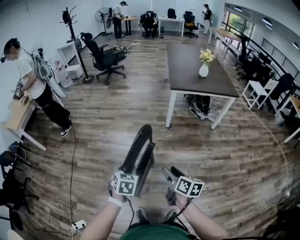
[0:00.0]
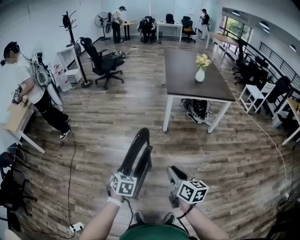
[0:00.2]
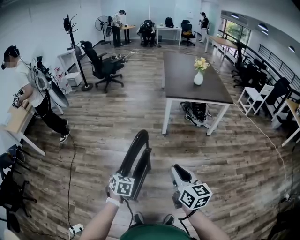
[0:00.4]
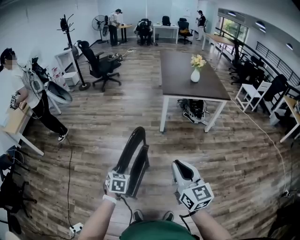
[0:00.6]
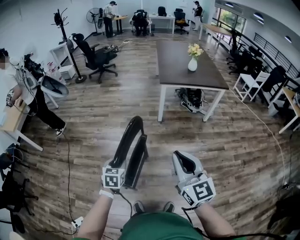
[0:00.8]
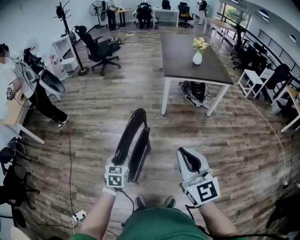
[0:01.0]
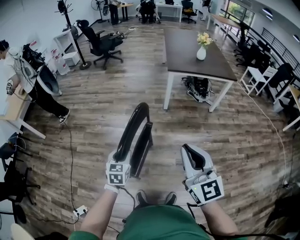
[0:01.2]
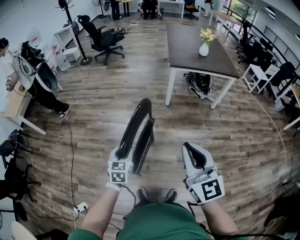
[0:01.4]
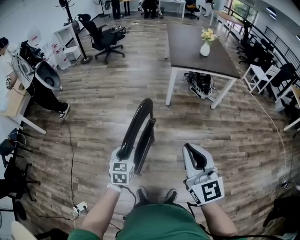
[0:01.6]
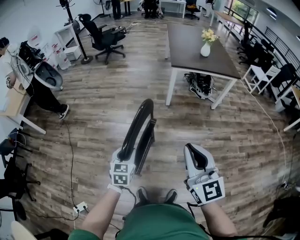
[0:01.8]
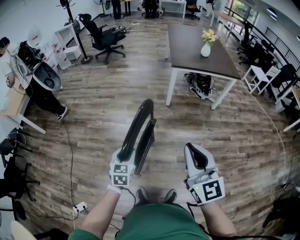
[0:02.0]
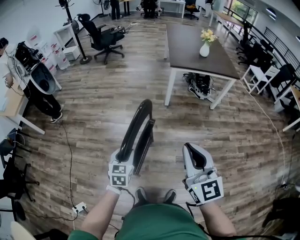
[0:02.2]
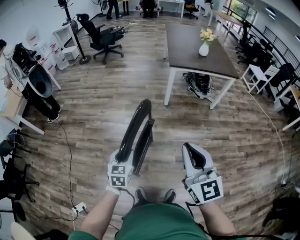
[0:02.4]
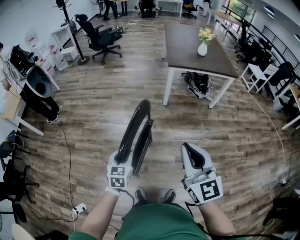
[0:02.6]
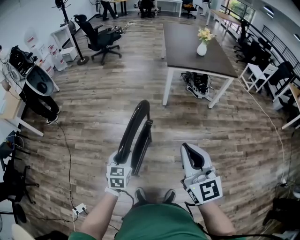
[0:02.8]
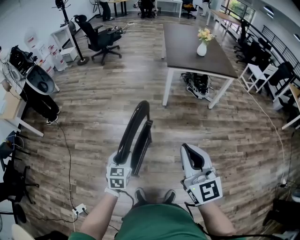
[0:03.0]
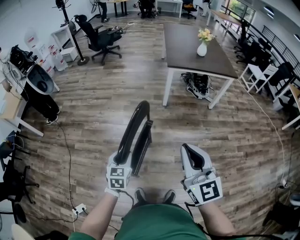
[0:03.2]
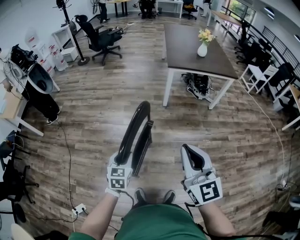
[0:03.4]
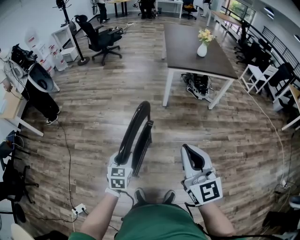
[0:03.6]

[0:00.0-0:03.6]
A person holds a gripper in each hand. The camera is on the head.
0.0 to 1.8 s: The right gripper heads upward, covering some 20 cm, rolls counterclockwise, seen from behind, by approximately 50 degrees, and closes its fingers.
1.8 to 3.6 s: The two grippers keep their place.

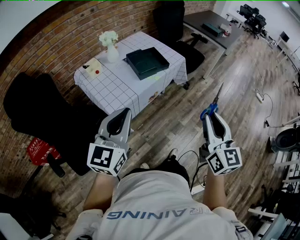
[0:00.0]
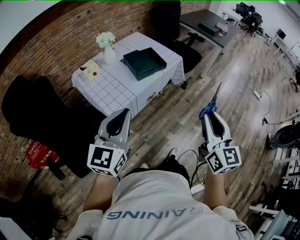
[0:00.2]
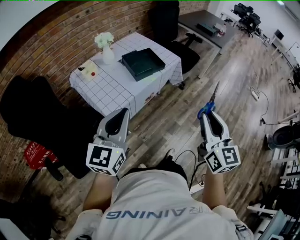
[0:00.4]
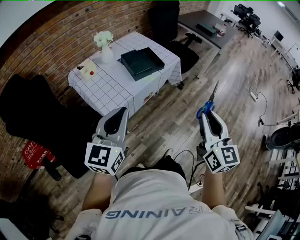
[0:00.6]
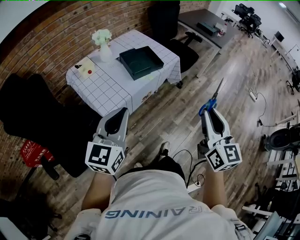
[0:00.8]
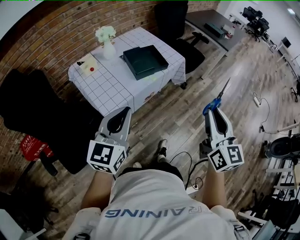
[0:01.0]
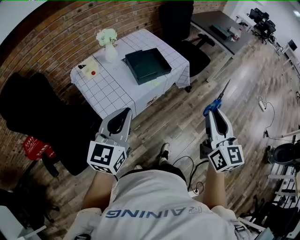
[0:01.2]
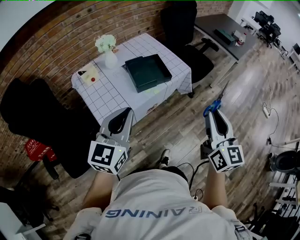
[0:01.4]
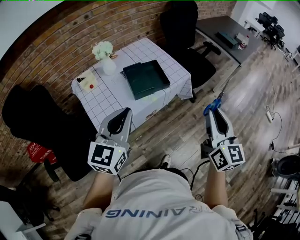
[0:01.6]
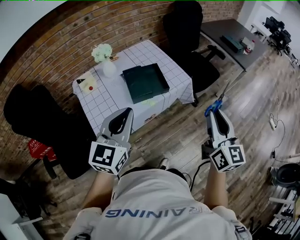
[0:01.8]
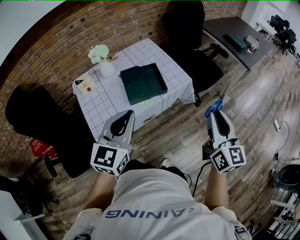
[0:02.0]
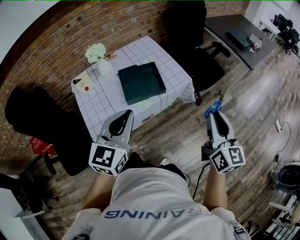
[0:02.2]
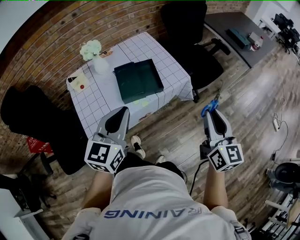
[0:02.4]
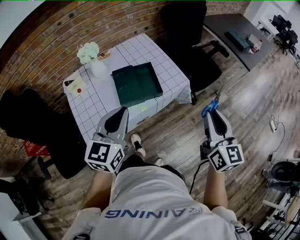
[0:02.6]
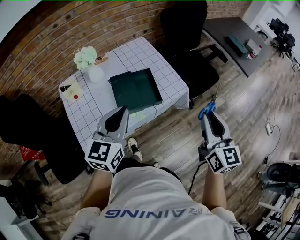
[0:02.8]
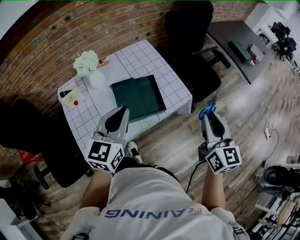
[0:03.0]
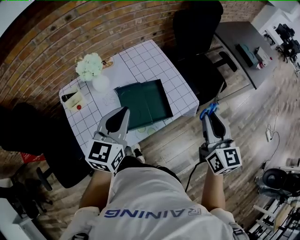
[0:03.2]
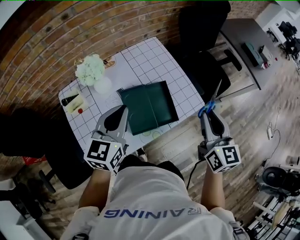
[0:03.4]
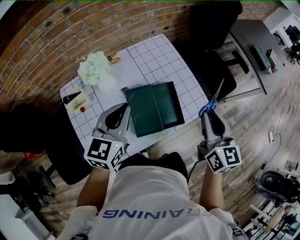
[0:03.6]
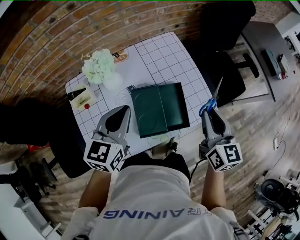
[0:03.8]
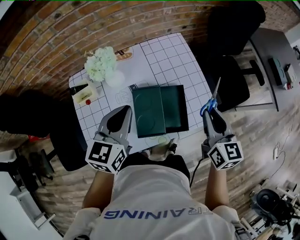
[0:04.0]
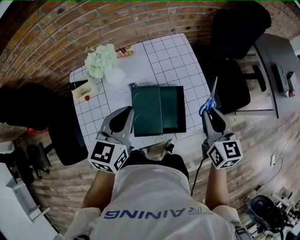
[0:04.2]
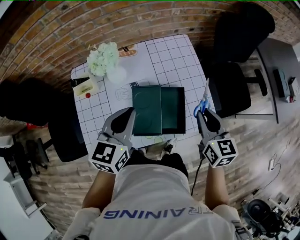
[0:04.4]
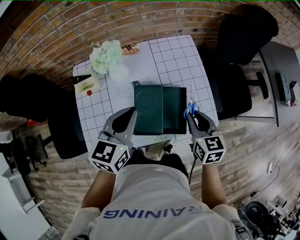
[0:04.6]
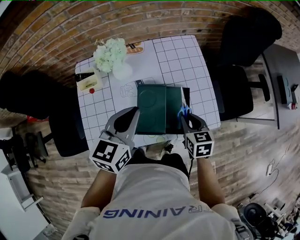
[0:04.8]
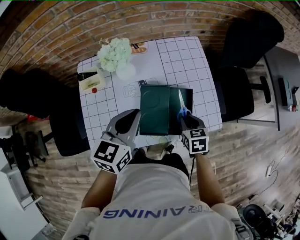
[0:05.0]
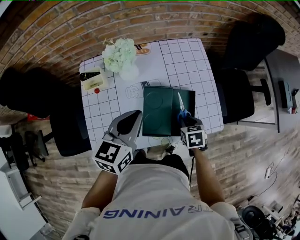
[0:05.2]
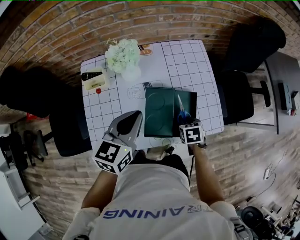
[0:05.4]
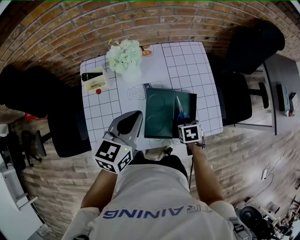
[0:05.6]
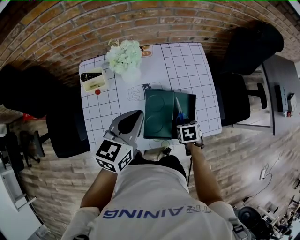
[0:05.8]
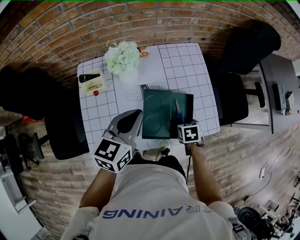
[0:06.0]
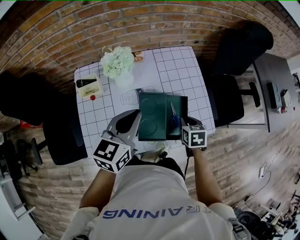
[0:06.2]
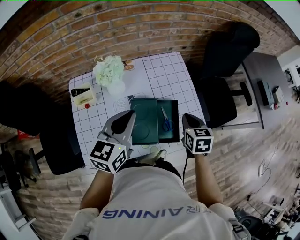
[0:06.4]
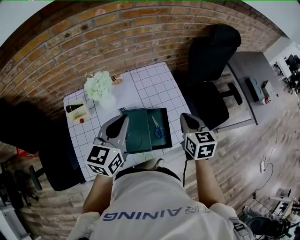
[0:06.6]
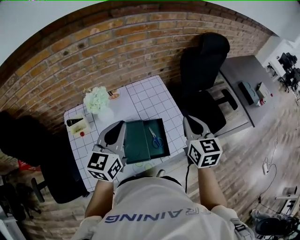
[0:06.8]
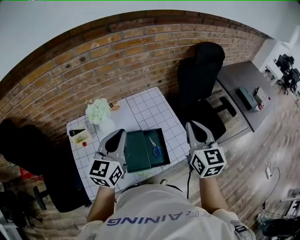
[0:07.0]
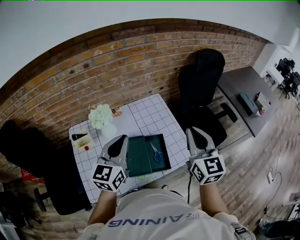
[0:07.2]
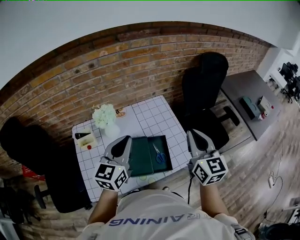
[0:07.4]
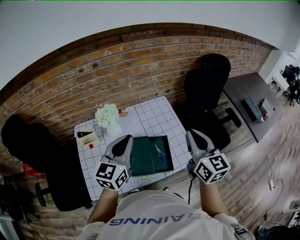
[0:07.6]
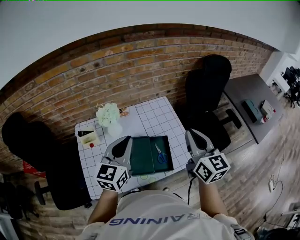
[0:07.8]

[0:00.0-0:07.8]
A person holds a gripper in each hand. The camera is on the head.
0.0 to 1.6 s: The two grippers go approximately 20 cm forward.
1.6 to 3.2 s: The two grippers go some 30 cm forward.
3.2 to 4.6 s: The left gripper goes about 10 cm forward and downward; the right gripper heads downward, forward and to the left, covering roughly 25 cm, and rotates roughly 30 degrees.
4.6 to 6.2 s: The right gripper moves downward, approximately 10 cm, and turns by about 20 degrees.
6.2 to 7.8 s: The right gripper is displaced upward by approximately 35 cm, and tips its fingers upward by some 50 degrees; the left gripper goes approximately 10 cm upward.

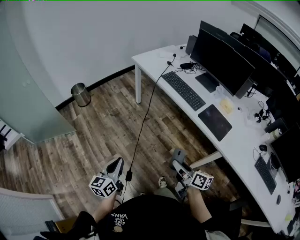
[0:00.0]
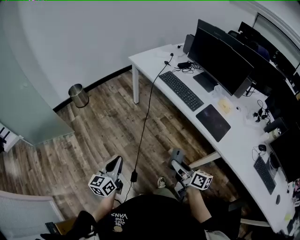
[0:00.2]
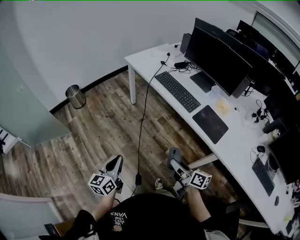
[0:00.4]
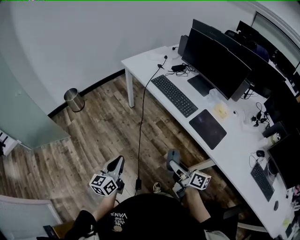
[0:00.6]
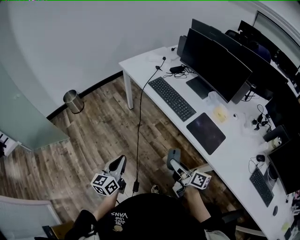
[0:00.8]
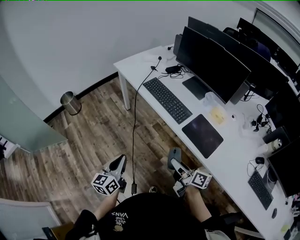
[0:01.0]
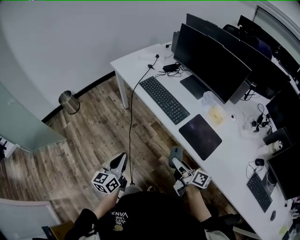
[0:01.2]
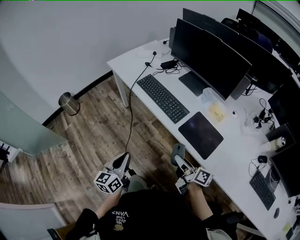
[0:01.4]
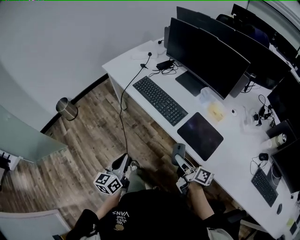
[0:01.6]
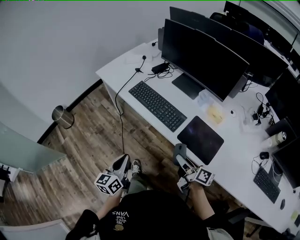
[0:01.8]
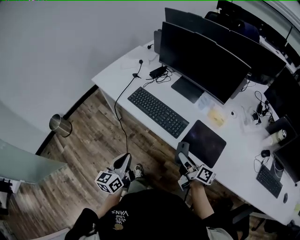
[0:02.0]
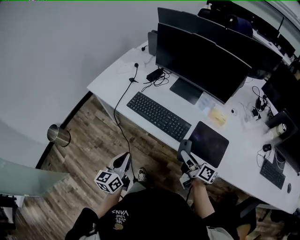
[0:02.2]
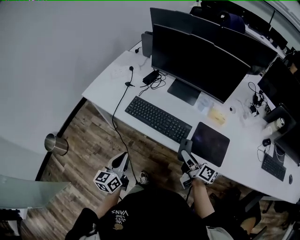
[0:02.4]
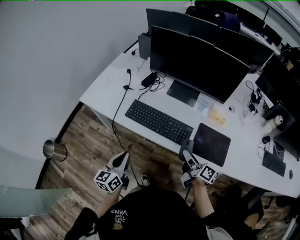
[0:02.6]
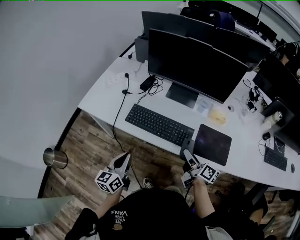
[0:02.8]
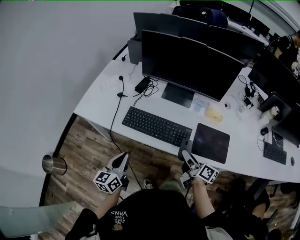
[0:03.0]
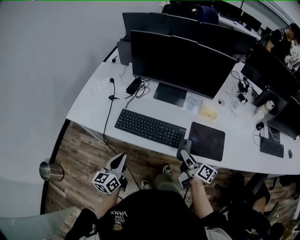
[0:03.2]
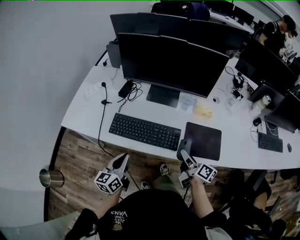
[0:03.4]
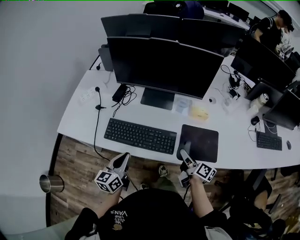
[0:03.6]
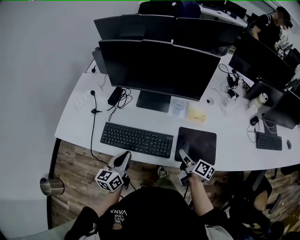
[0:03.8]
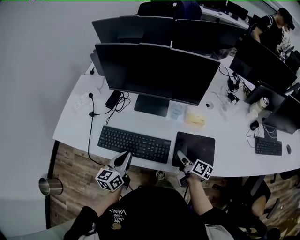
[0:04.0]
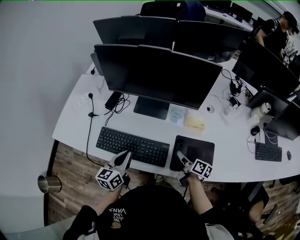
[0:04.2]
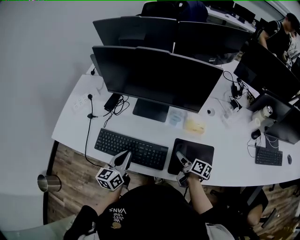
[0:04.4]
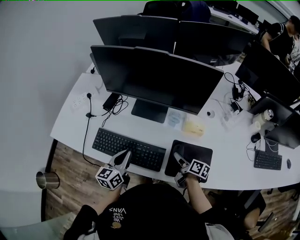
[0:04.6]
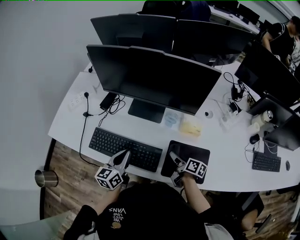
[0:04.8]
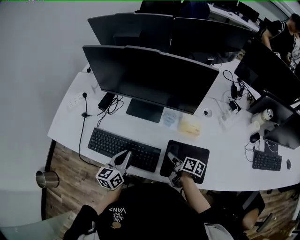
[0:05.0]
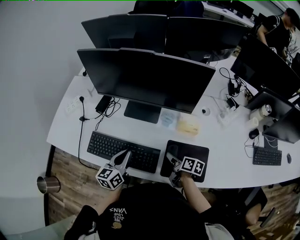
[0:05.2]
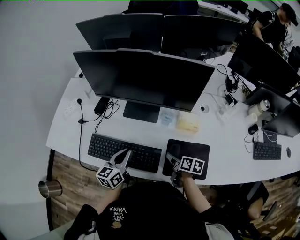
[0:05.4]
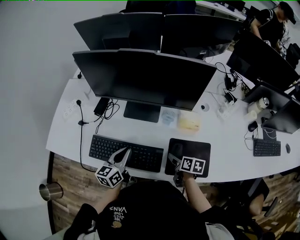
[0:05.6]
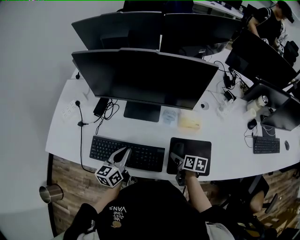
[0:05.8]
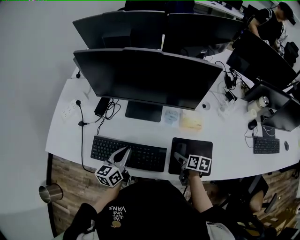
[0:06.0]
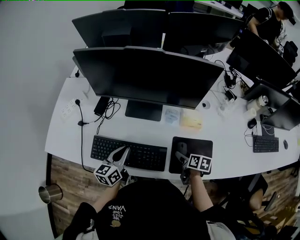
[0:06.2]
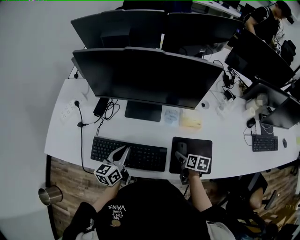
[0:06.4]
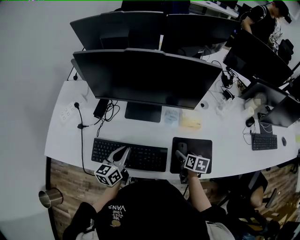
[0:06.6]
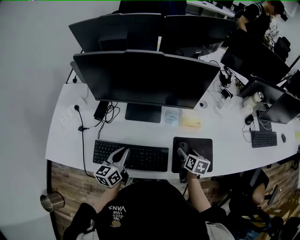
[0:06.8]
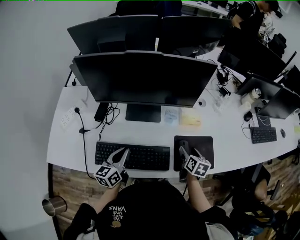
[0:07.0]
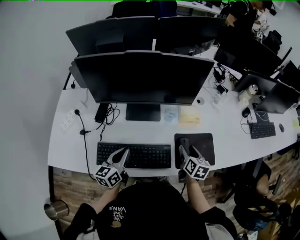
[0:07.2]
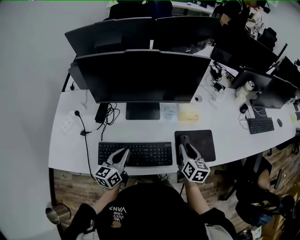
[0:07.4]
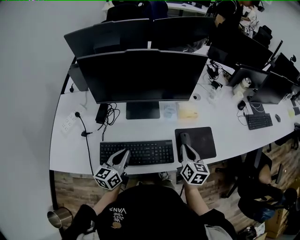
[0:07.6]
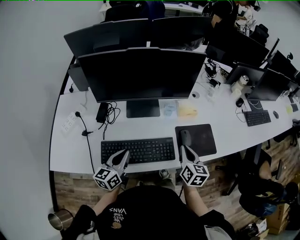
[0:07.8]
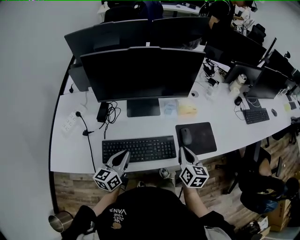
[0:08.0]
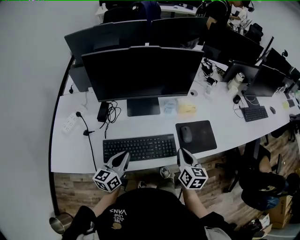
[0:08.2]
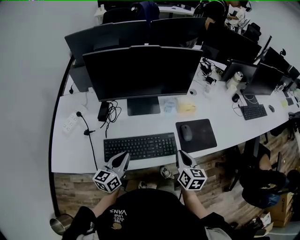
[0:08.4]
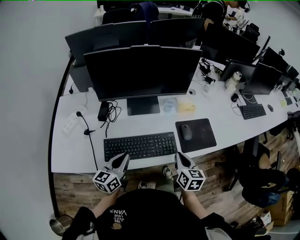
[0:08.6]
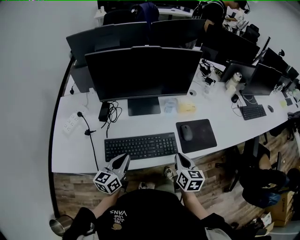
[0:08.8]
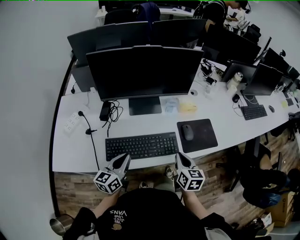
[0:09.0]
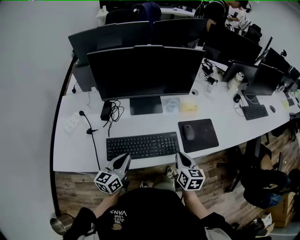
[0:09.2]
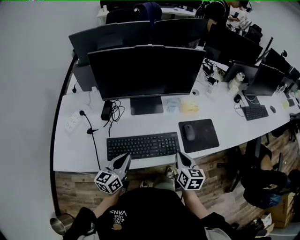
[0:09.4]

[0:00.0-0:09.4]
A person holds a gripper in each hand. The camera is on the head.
0.0 to 1.6 s: The two grippers go roughly 30 cm to the right and forward.
1.6 to 3.2 s: The right gripper ends up roughly 15 cm from where it was, and turns by about 40 degrees, while the left gripper ends up about 30 cm from where it was, and changes its angle by about 30 degrees.
3.2 to 4.8 s: The left gripper travels forward and to the right by roughly 25 cm. Meanwhile the right gripper heads forward, downward and to the right, covering about 20 cm, and swivels some 20 degrees.
4.8 to 6.2 s: The left gripper moves roughly 5 cm. The right gripper swivels about 30 degrees, and opens.
6.2 to 7.8 s: The right gripper is displaced upward, backward and to the left by roughly 20 cm, rotates some 40 degrees, and closes its fingers. Meanwhile the left gripper ends up some 10 cm from where it was.
7.8 to 9.4 s: The two grippers go some 5 cm backward.

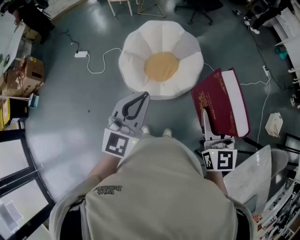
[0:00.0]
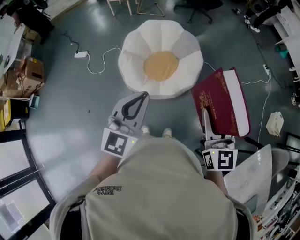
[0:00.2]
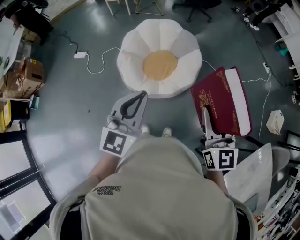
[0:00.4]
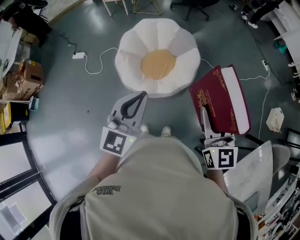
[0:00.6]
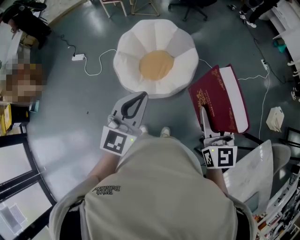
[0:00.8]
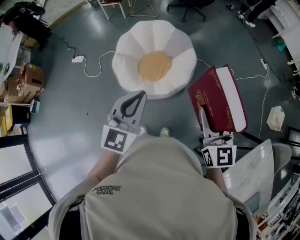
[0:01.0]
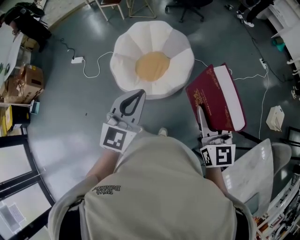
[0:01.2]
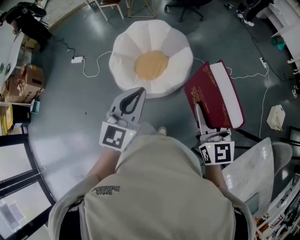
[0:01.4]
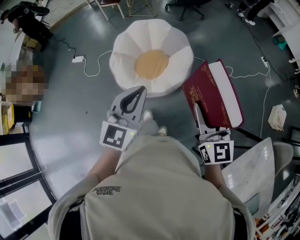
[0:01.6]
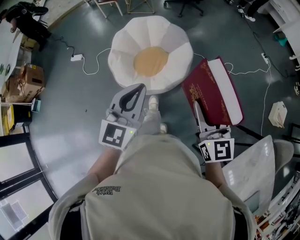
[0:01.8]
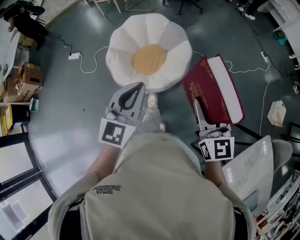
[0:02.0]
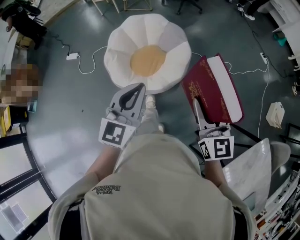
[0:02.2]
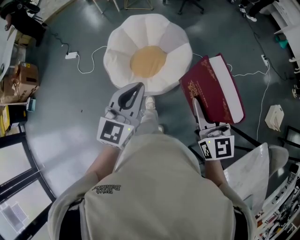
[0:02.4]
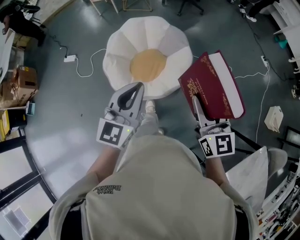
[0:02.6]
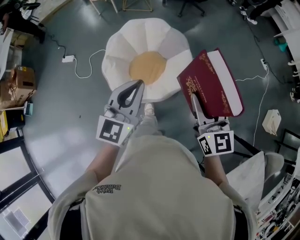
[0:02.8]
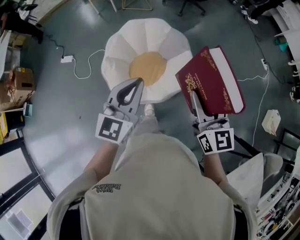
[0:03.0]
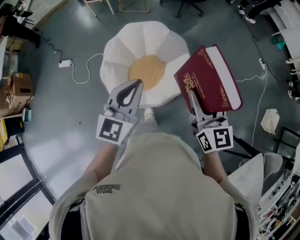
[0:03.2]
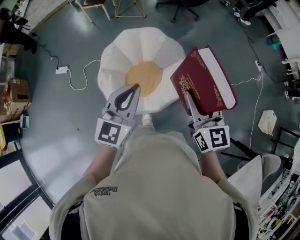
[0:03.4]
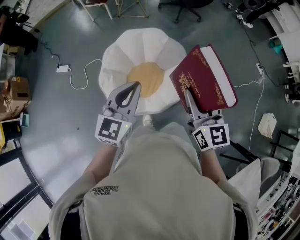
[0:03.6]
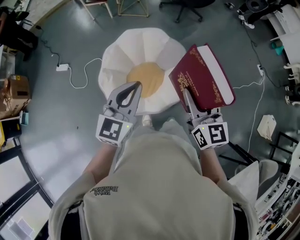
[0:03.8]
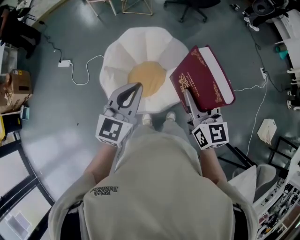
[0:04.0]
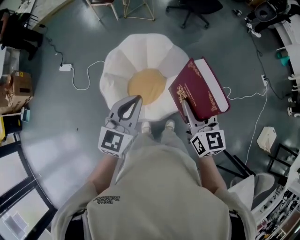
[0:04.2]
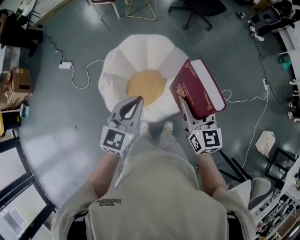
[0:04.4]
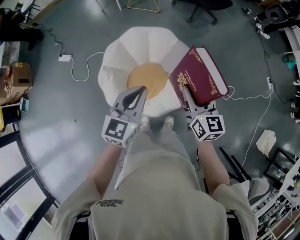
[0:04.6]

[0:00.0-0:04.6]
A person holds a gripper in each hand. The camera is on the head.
0.0 to 1.6 s: Both grippers move to the right, some 15 cm.
1.6 to 3.0 s: Both grippers travel together forward, about 25 cm.
3.0 to 4.6 s: The two grippers go roughly 25 cm forward and downward.
